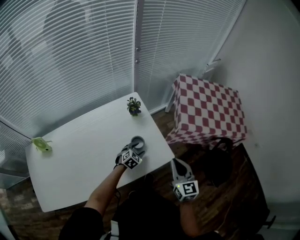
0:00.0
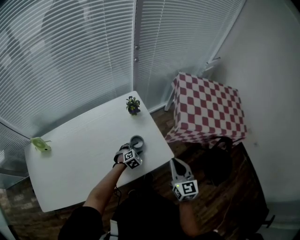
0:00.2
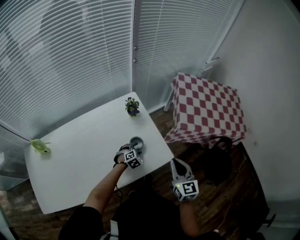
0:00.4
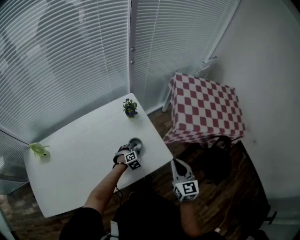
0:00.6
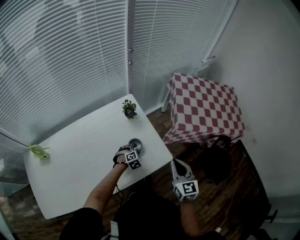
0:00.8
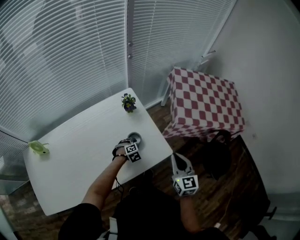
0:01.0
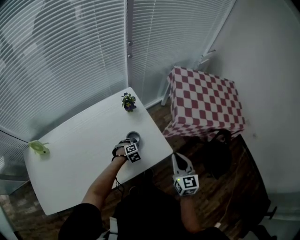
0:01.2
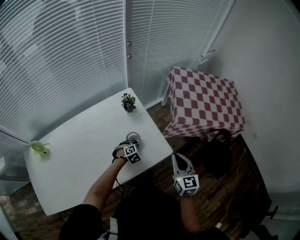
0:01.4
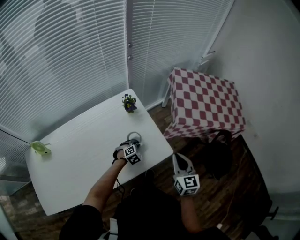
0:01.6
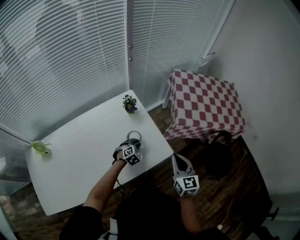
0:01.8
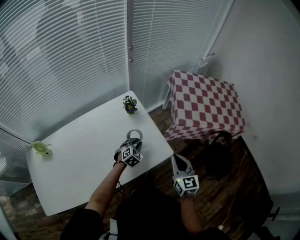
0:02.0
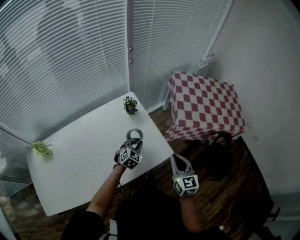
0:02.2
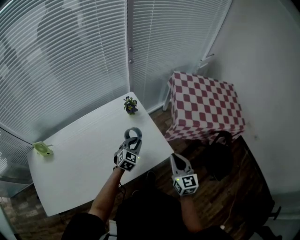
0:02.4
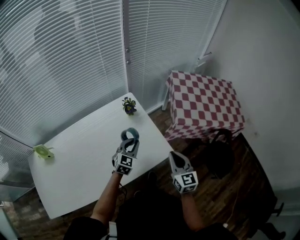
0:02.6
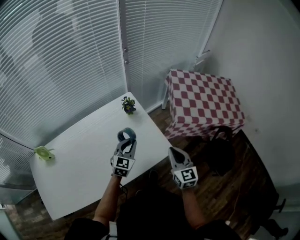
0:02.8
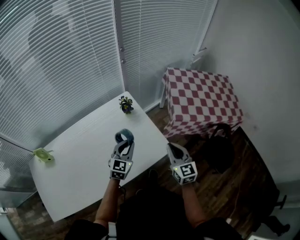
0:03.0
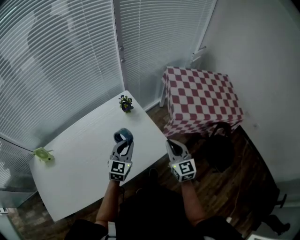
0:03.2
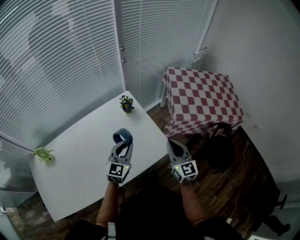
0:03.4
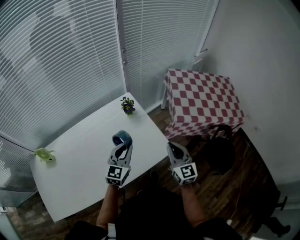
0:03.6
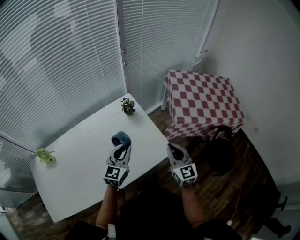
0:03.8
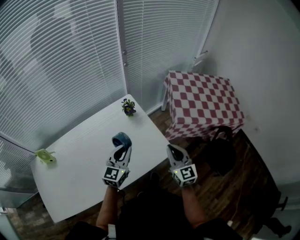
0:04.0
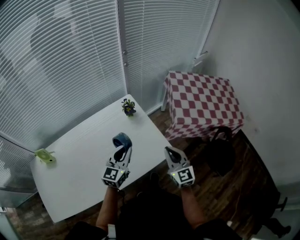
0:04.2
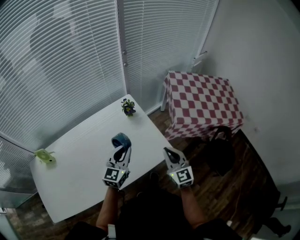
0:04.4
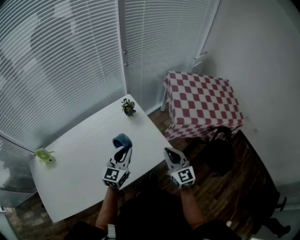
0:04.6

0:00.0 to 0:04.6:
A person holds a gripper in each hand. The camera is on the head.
0:00.0 to 0:01.6: The left gripper closes its fingers.
0:01.6 to 0:03.0: The left gripper travels upward by some 20 cm, and angles its fingers upward, by roughly 40 degrees.
0:03.0 to 0:04.6: The left gripper changes place by about 5 cm.

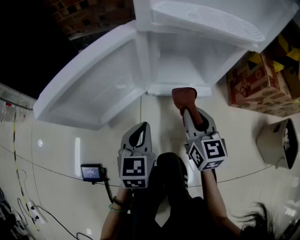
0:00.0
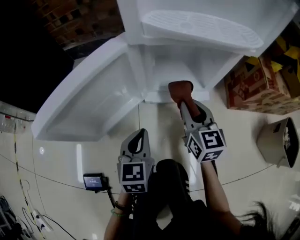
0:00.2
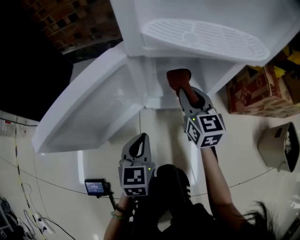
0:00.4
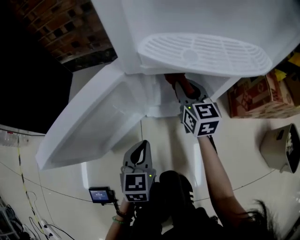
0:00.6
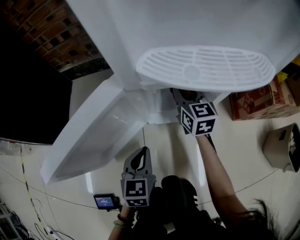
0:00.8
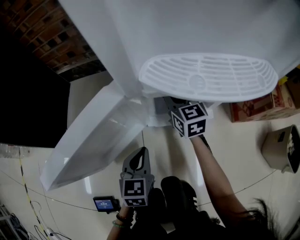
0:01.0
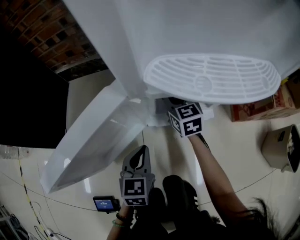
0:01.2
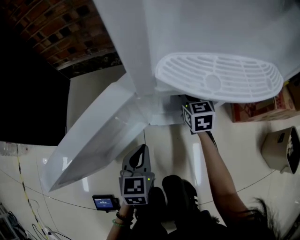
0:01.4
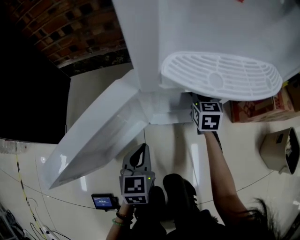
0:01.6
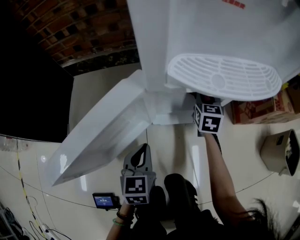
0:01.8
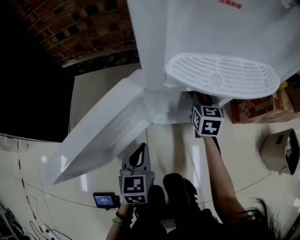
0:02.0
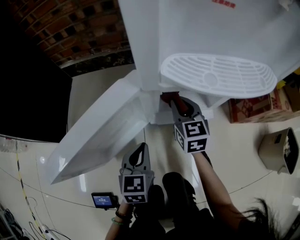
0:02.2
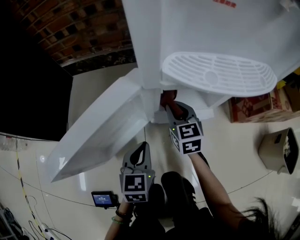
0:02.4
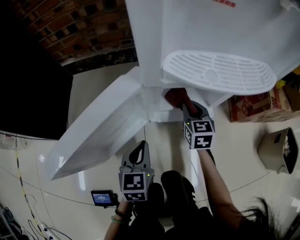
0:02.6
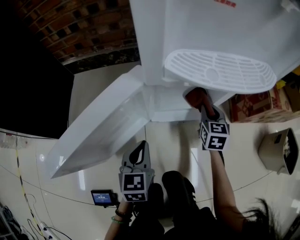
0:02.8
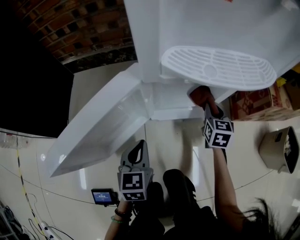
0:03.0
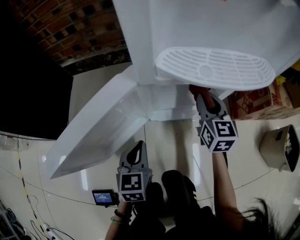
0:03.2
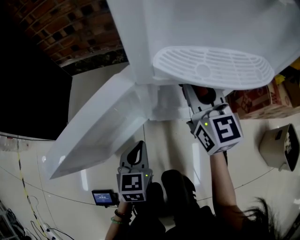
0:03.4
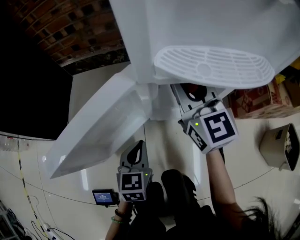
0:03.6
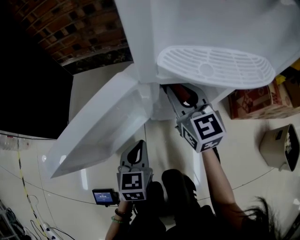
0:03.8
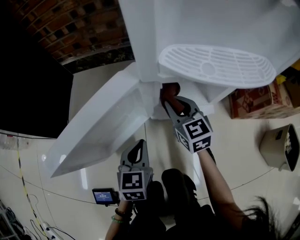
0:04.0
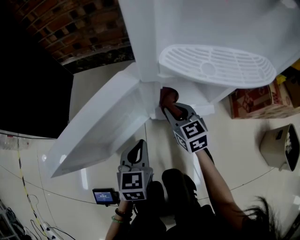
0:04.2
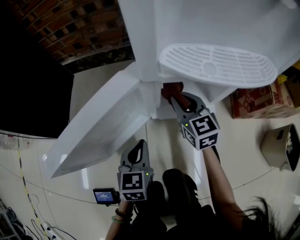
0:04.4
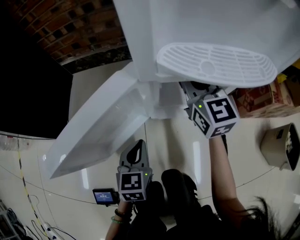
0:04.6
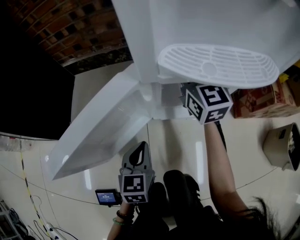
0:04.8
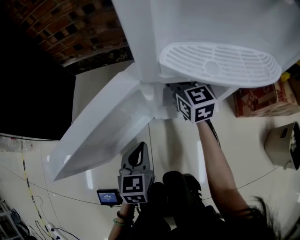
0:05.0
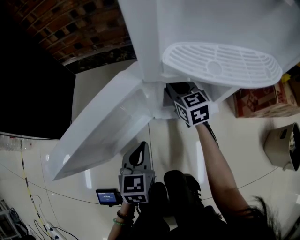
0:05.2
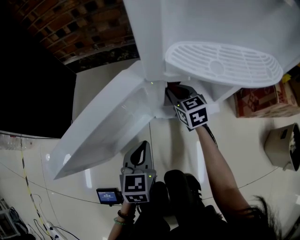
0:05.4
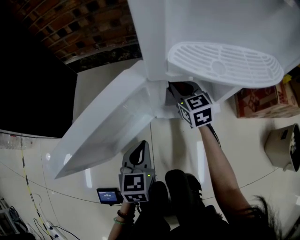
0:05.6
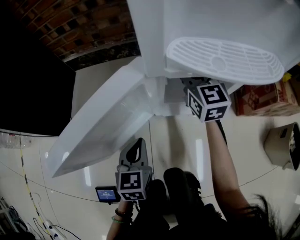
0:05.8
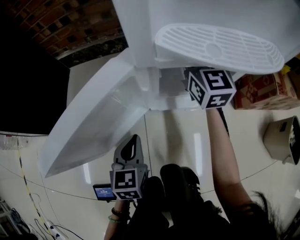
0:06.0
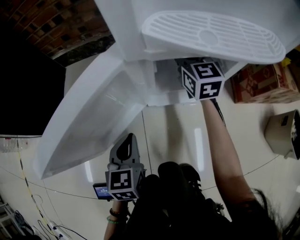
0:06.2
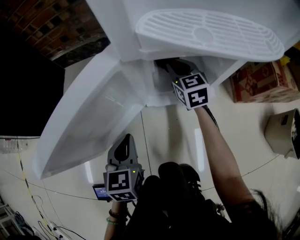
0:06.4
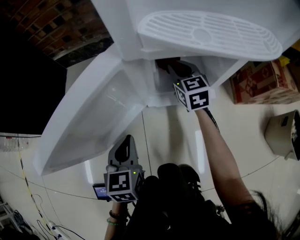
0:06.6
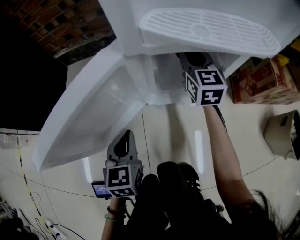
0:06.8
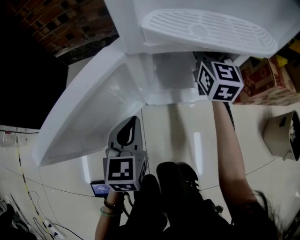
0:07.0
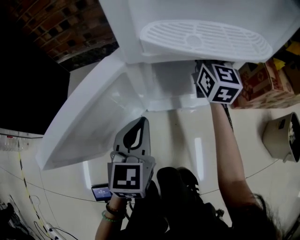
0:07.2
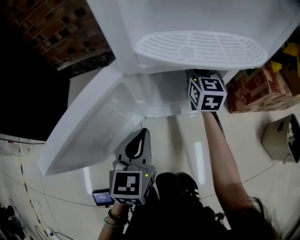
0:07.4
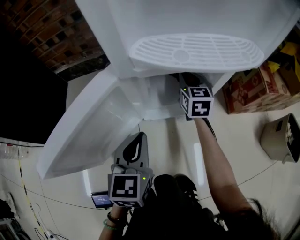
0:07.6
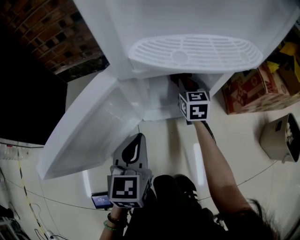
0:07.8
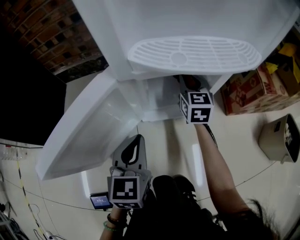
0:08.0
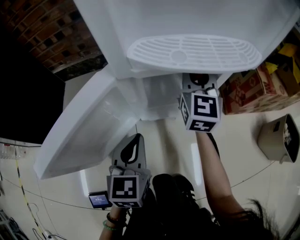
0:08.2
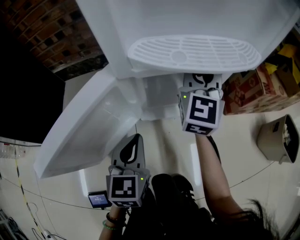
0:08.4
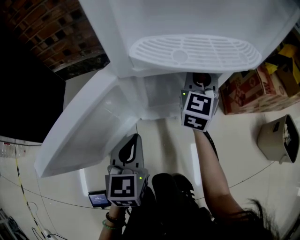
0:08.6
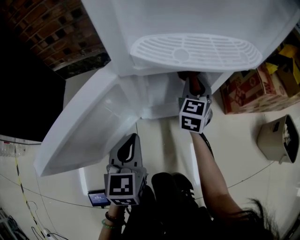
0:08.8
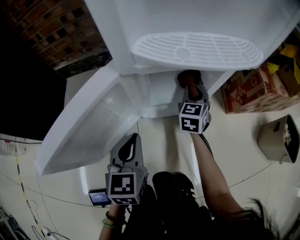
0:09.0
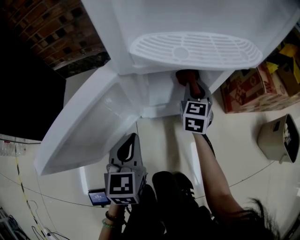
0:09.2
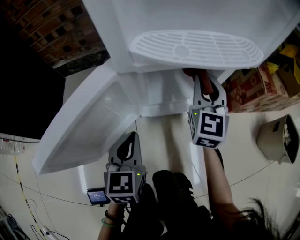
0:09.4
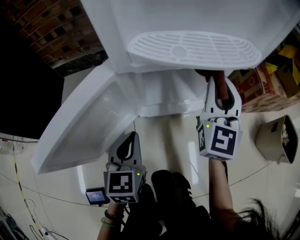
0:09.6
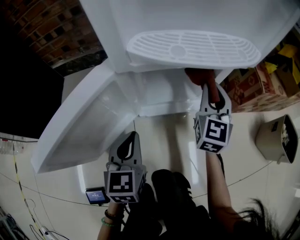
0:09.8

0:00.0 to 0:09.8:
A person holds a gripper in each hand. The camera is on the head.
0:00.0 to 0:01.4: The left gripper moves forward, about 5 cm. Meanwhile the right gripper heads forward, covering roughly 20 cm.
0:01.4 to 0:02.8: The right gripper moves left and right over approximately 15 cm, changing direction 2 times.
0:02.8 to 0:04.2: The right gripper goes approximately 15 cm to the left, reaches roughly 20 cm upward, then returns, and swivels about 30 degrees.
0:04.2 to 0:05.6: The right gripper shifts about 10 cm forward, and travels upward and back again, about 15 cm each way.
0:05.6 to 0:07.0: The left gripper is displaced upward by some 5 cm. Meanwhile the right gripper moves up and down over some 15 cm, changing direction 2 times, and rotates approximately 30 degrees.
0:07.0 to 0:08.4: The right gripper travels downward and back again, roughly 15 cm each way.
0:08.4 to 0:09.8: The right gripper swings up and down, roughly 20 cm each way, with 2 reversals.

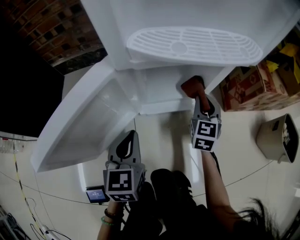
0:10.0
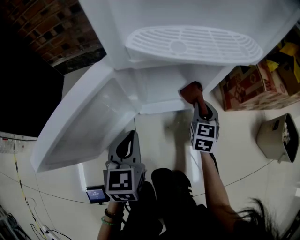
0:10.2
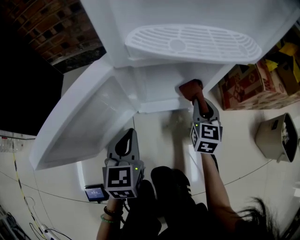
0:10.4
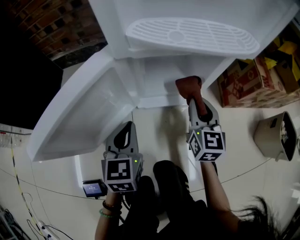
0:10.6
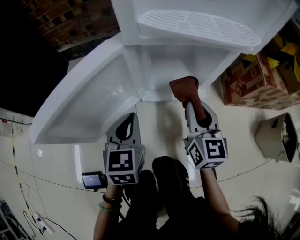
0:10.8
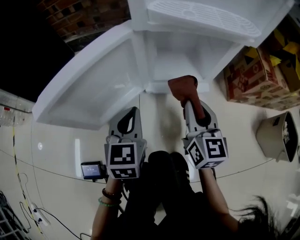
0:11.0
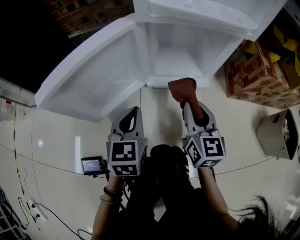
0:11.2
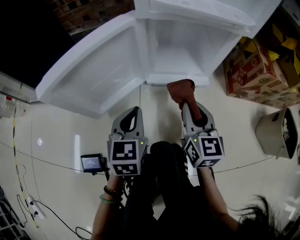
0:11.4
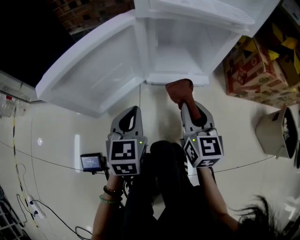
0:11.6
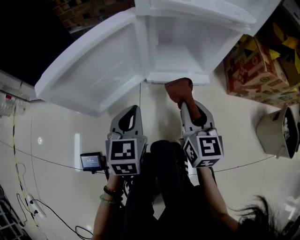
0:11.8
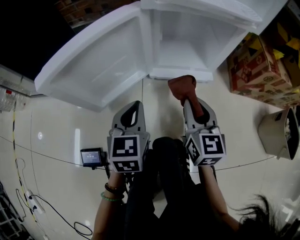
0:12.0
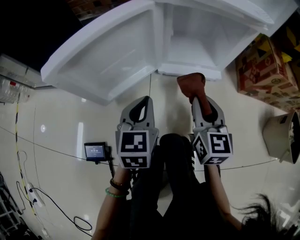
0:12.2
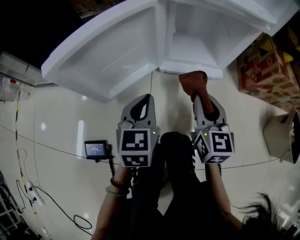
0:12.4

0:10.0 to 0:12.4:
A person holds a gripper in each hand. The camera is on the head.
0:10.0 to 0:11.2: The right gripper shifts about 15 cm backward and to the left, and swivels approximately 30 degrees; the left gripper goes about 5 cm backward.
0:11.2 to 0:12.4: There are only small adjustments of the grippers.

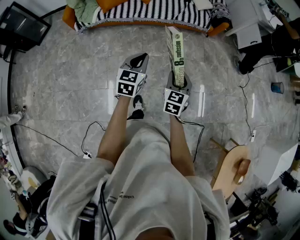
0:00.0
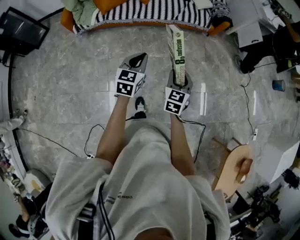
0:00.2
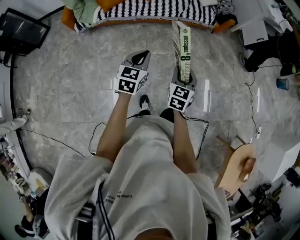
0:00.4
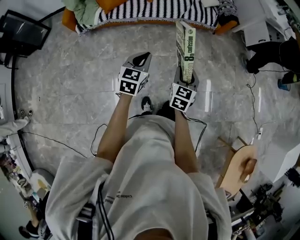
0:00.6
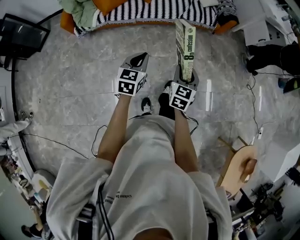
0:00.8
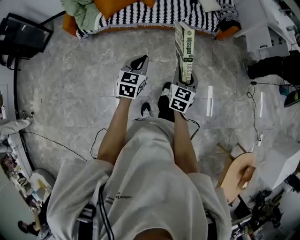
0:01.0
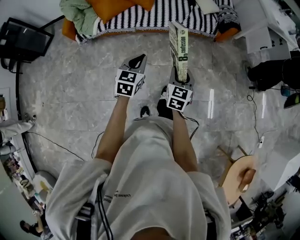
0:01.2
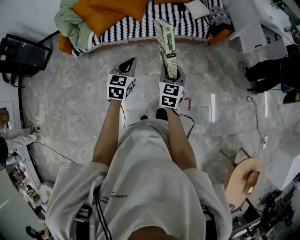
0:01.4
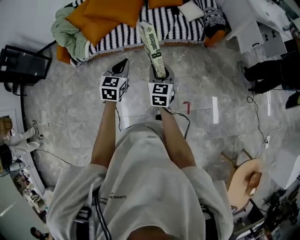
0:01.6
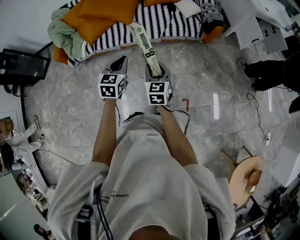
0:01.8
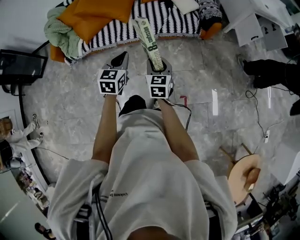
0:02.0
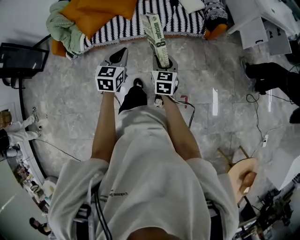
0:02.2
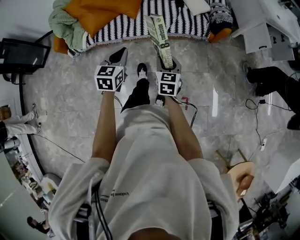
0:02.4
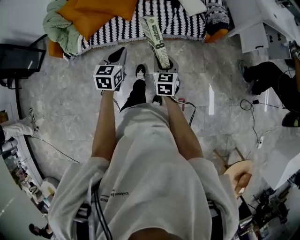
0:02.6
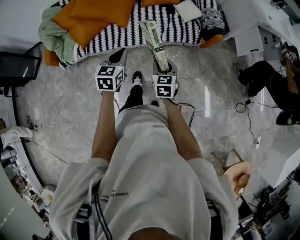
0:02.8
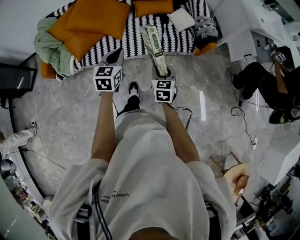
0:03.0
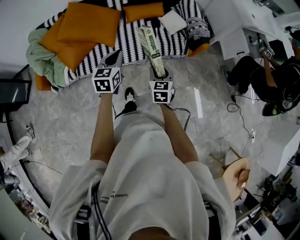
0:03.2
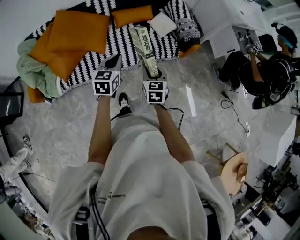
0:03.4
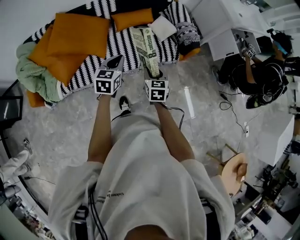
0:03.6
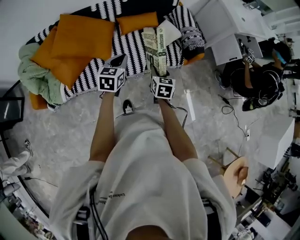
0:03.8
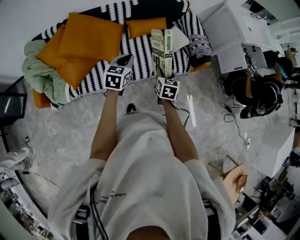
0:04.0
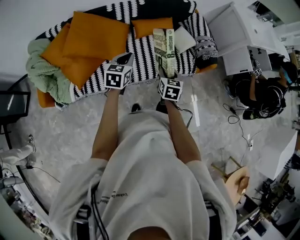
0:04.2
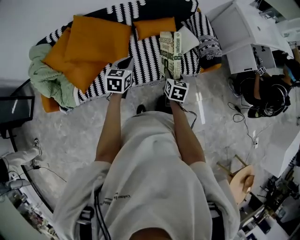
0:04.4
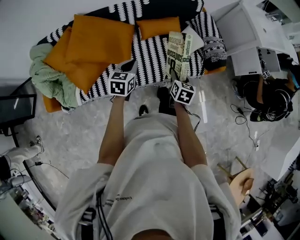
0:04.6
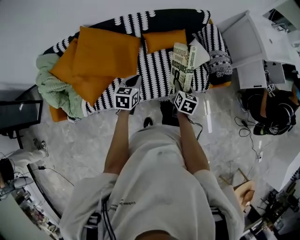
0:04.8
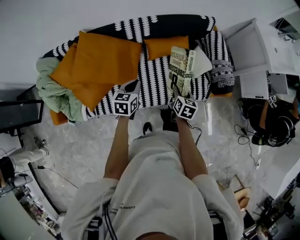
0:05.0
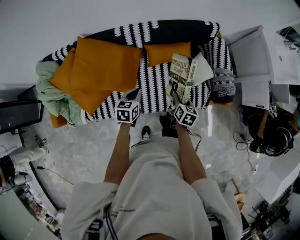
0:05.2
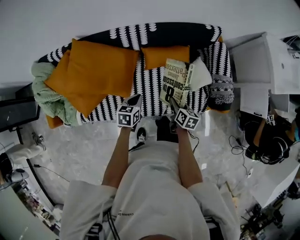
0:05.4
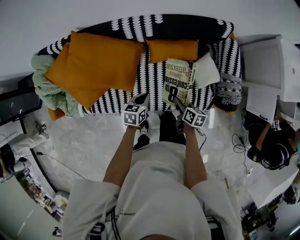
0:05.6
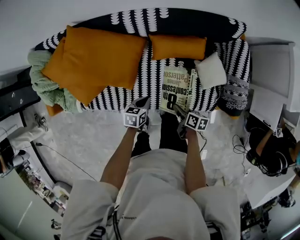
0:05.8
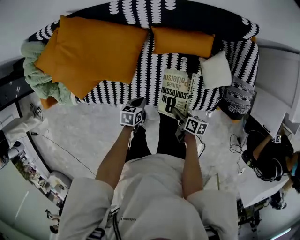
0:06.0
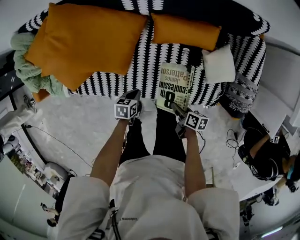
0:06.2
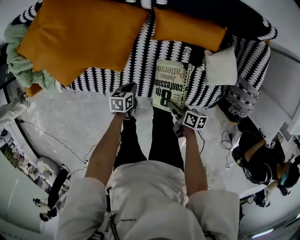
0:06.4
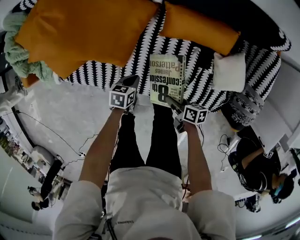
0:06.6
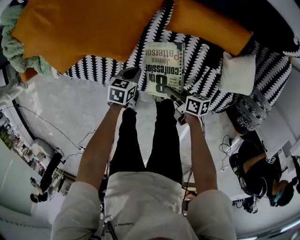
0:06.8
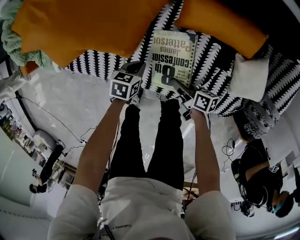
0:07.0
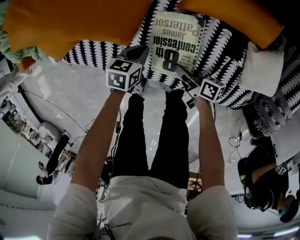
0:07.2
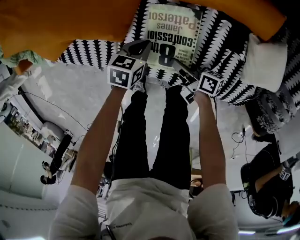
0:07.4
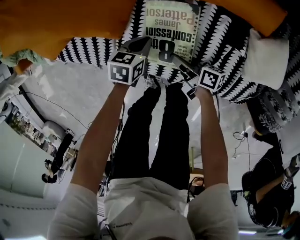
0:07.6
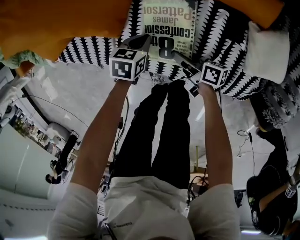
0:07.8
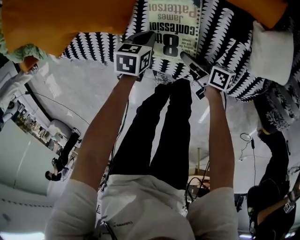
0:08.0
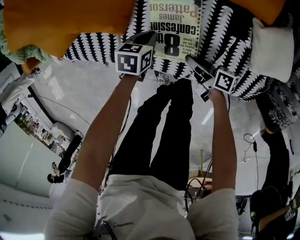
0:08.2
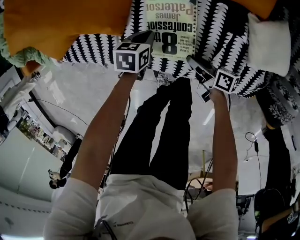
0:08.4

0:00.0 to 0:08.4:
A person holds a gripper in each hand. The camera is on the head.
0:00.0 to 0:01.4: The two grippers go about 20 cm forward.
0:01.4 to 0:02.8: Both grippers travel together forward, approximately 20 cm.
0:02.8 to 0:04.2: The right gripper travels forward by about 25 cm, while the left gripper moves forward and to the left, some 30 cm.
0:04.2 to 0:05.6: The right gripper heads forward and downward, covering roughly 30 cm, and rotates about 40 degrees. The left gripper goes roughly 30 cm downward and forward, and swivels about 30 degrees.
0:05.6 to 0:07.0: The left gripper shifts approximately 25 cm downward. The right gripper moves downward and to the left, roughly 25 cm, and turns by roughly 40 degrees.
0:07.0 to 0:08.4: The right gripper travels downward by roughly 5 cm; the left gripper ends up about 5 cm from where it was.
